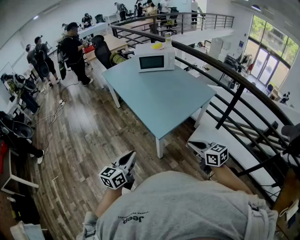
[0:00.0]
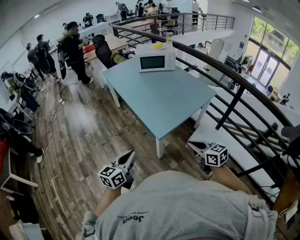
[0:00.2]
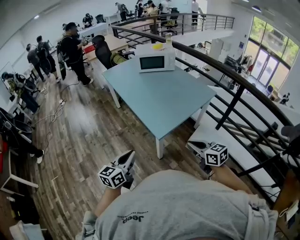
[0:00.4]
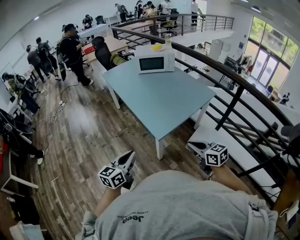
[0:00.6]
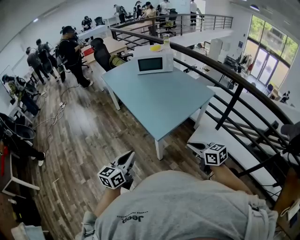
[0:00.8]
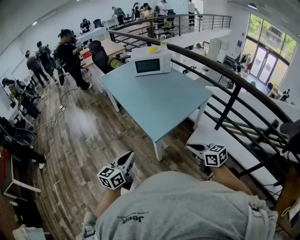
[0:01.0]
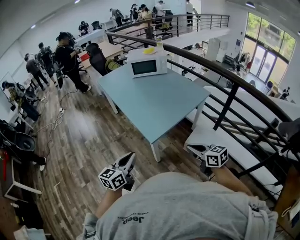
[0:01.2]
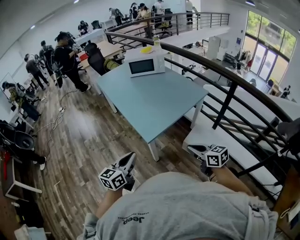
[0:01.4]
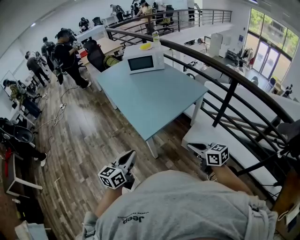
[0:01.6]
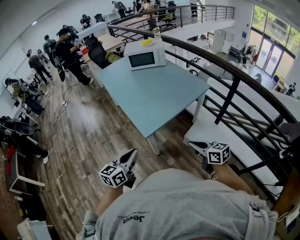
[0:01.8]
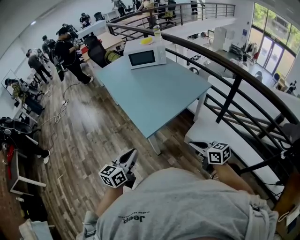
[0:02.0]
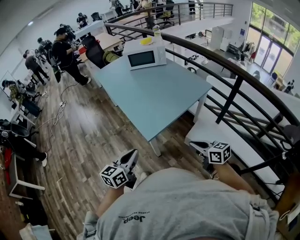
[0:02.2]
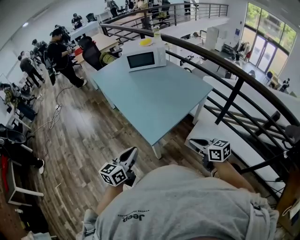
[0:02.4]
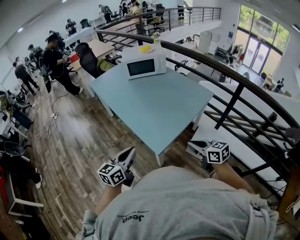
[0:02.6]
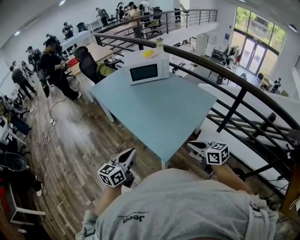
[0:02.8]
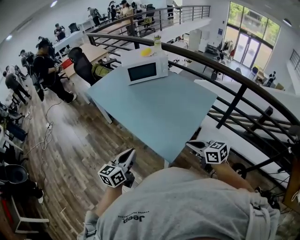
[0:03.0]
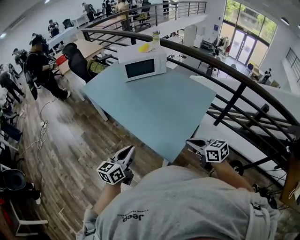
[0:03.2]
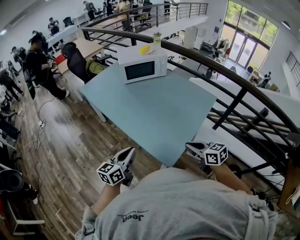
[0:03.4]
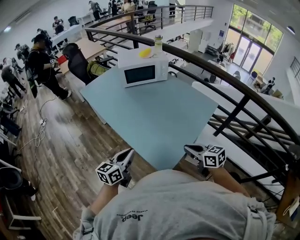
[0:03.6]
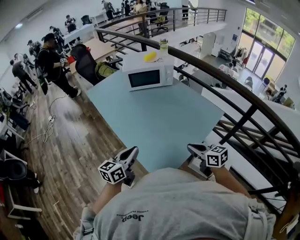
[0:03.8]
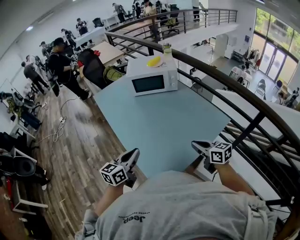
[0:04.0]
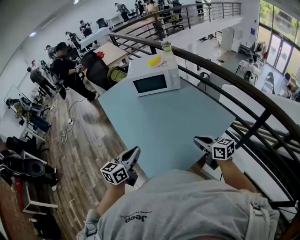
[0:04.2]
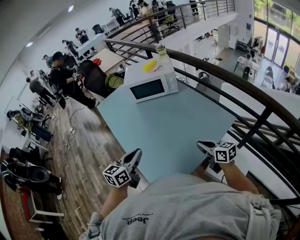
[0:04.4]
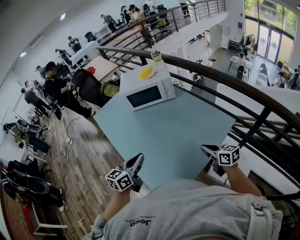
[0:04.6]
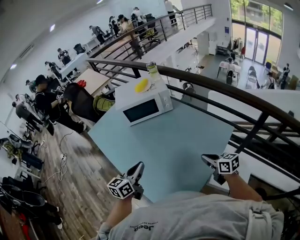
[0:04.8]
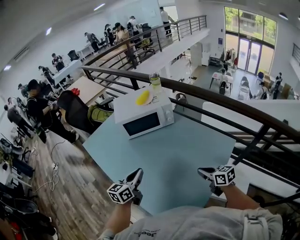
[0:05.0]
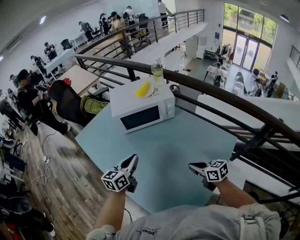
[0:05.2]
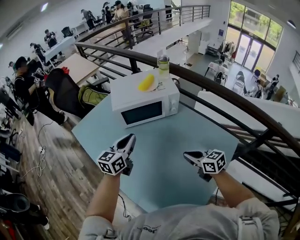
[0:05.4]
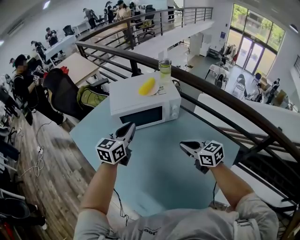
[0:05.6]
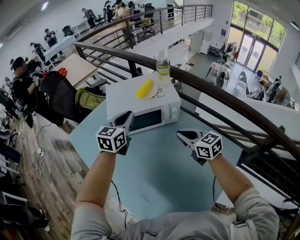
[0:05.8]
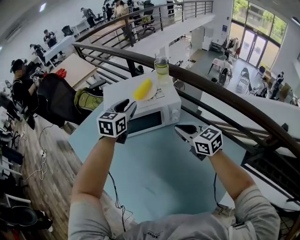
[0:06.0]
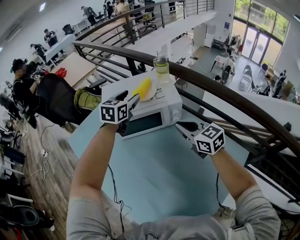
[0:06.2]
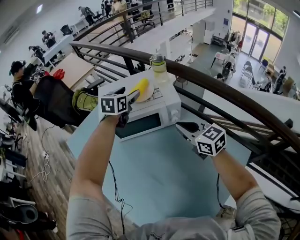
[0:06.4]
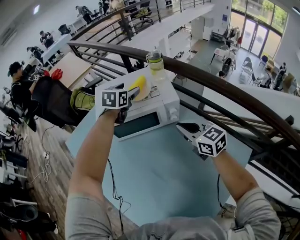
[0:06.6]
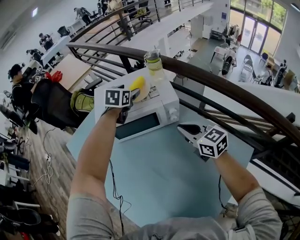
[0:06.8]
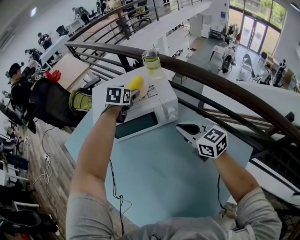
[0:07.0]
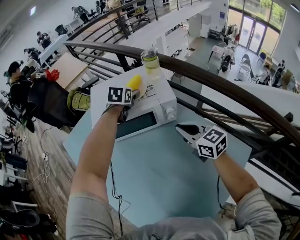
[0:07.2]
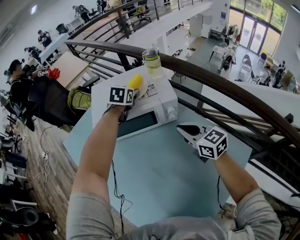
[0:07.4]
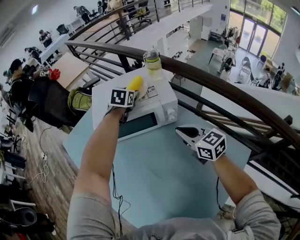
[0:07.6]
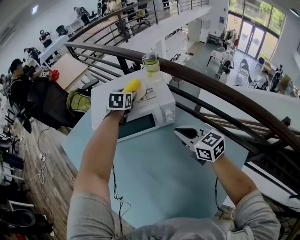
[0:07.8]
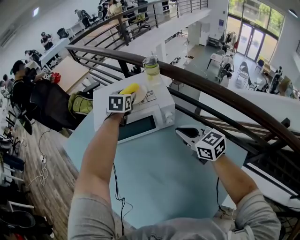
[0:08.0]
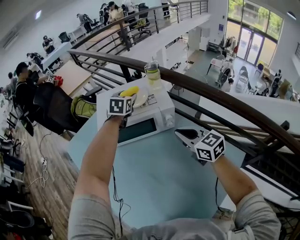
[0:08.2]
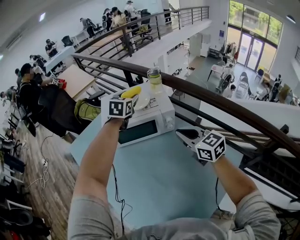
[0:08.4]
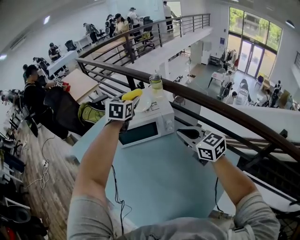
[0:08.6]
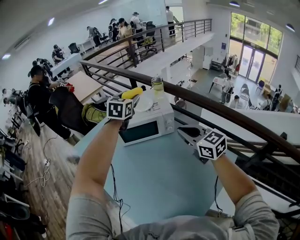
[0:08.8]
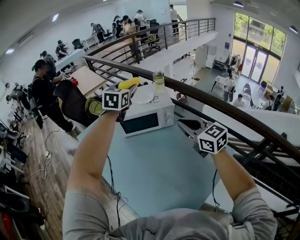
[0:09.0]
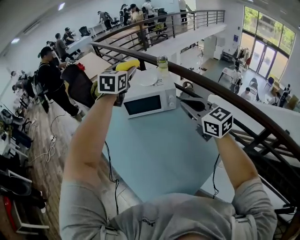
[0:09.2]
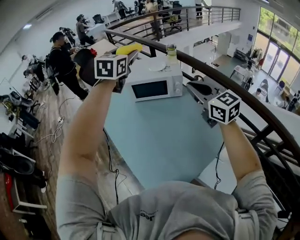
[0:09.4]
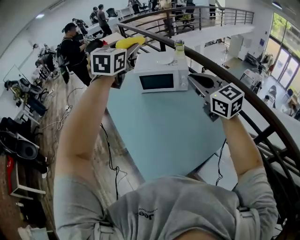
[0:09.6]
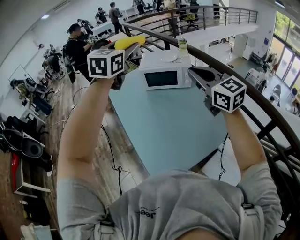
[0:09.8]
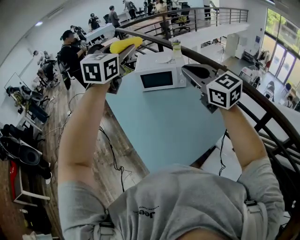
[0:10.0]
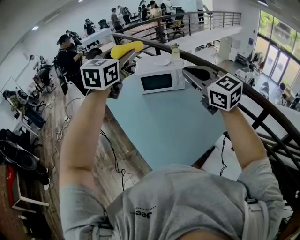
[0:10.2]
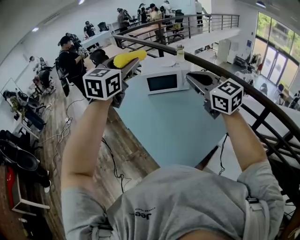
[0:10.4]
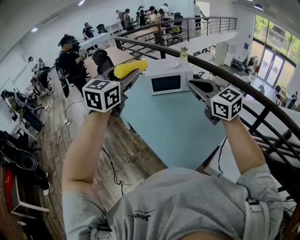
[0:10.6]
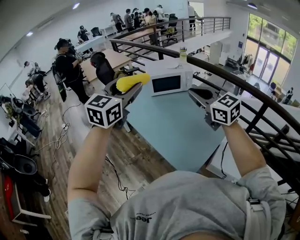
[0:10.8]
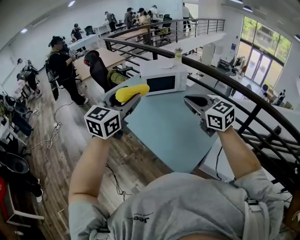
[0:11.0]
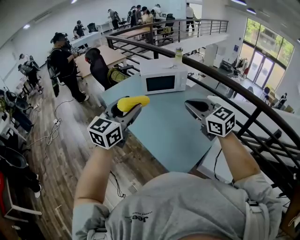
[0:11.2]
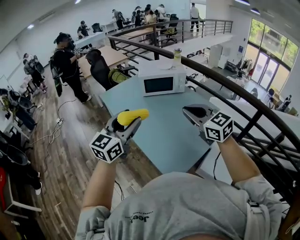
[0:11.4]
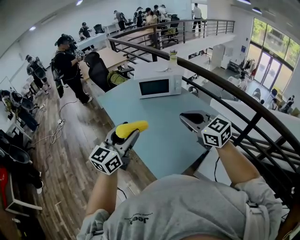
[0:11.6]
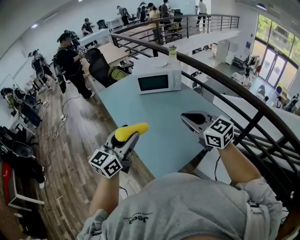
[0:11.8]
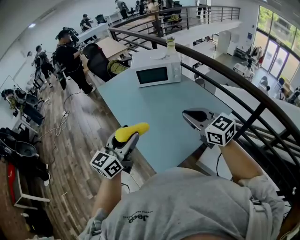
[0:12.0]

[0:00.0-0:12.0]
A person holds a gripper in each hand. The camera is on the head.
0:00.0 to 0:01.6: The grippers both shift to the right by approximately 10 cm.
0:01.6 to 0:03.0: Both grippers travel together forward and to the left, roughly 30 cm.
0:03.0 to 0:04.4: Both grippers move forward and to the right, approximately 30 cm.
0:04.4 to 0:06.0: The pair of grippers is taken forward, roughly 50 cm. The right gripper changes its angle by roughly 20 degrees. The left gripper turns by roughly 20 degrees.
0:06.0 to 0:07.6: The right gripper changes place by some 5 cm. Meanwhile the left gripper heads forward, downward and to the right, covering some 20 cm, swivels roughly 20 degrees, and opens up.
0:07.6 to 0:09.0: The two grippers go about 30 cm upward and backward. The left gripper swivels roughly 20 degrees.
0:09.0 to 0:10.4: The left gripper goes roughly 40 cm backward and to the left, while the right gripper travels backward, upward and to the left by some 30 cm.
0:10.4 to 0:12.0: The right gripper heads downward and backward, covering roughly 15 cm, while the left gripper shifts roughly 30 cm downward and backward, and changes its angle by approximately 20 degrees.

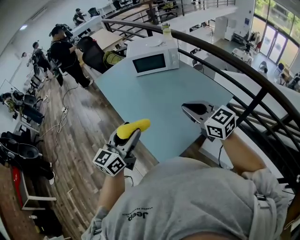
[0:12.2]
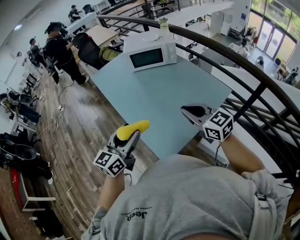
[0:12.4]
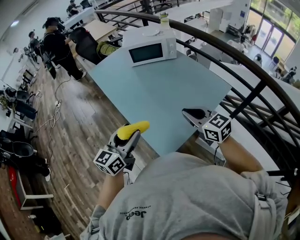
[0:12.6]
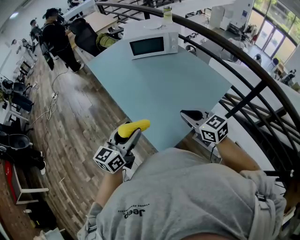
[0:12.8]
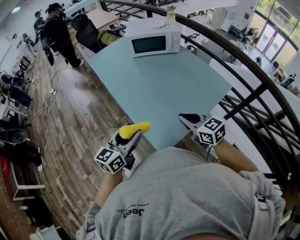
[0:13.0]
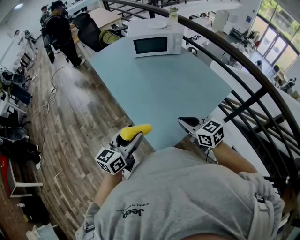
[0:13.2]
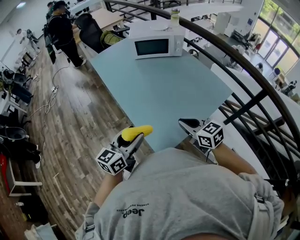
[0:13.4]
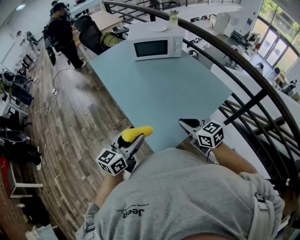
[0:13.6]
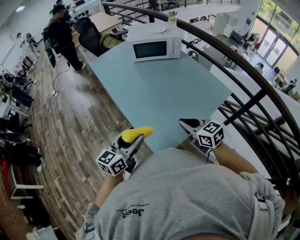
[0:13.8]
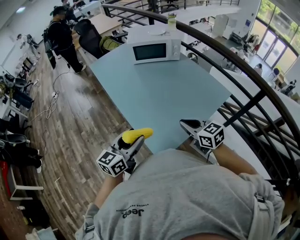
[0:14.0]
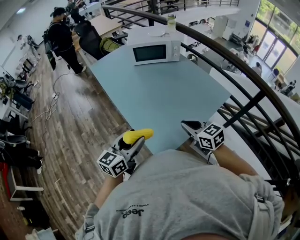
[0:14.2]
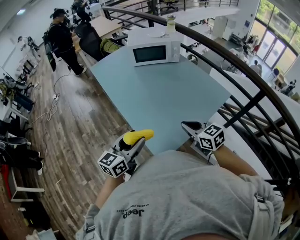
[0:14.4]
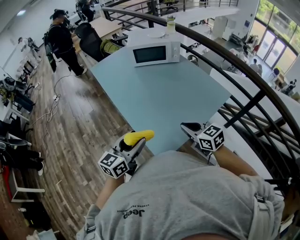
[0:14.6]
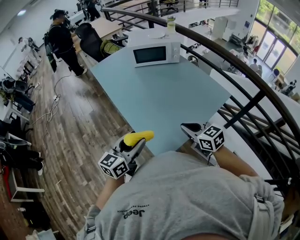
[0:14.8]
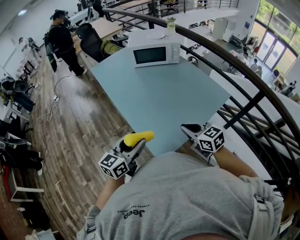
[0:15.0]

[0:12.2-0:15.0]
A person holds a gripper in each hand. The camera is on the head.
0:12.2 to 0:13.6: The two grippers go some 10 cm downward.
0:13.6 to 0:15.0: The grippers move only a little.

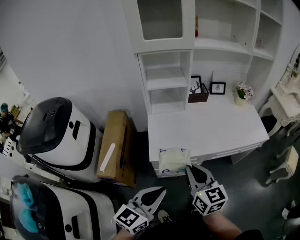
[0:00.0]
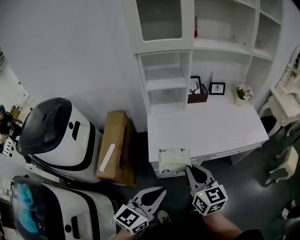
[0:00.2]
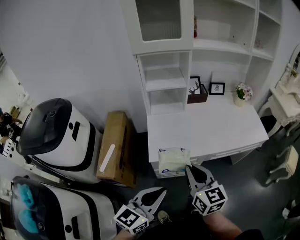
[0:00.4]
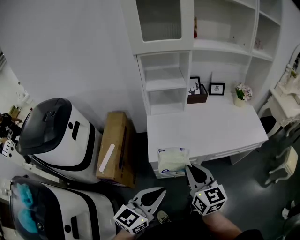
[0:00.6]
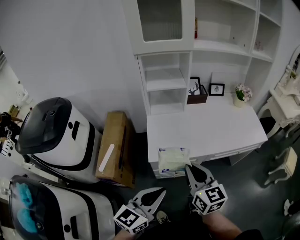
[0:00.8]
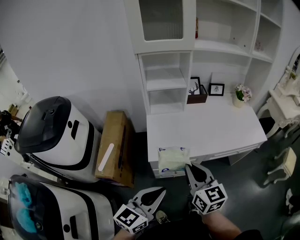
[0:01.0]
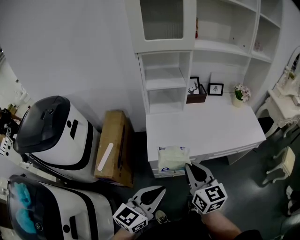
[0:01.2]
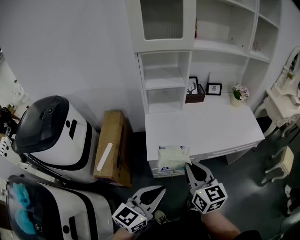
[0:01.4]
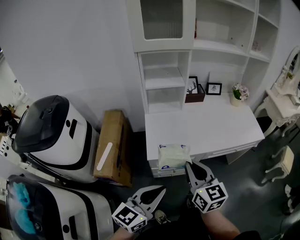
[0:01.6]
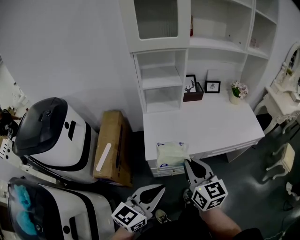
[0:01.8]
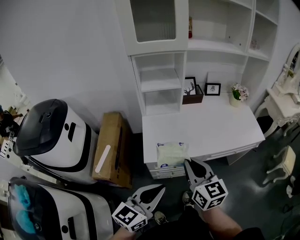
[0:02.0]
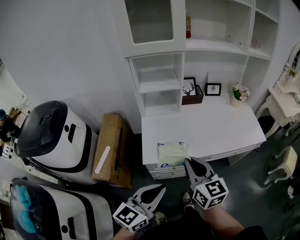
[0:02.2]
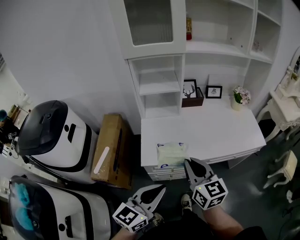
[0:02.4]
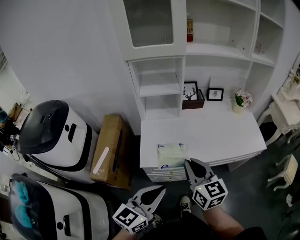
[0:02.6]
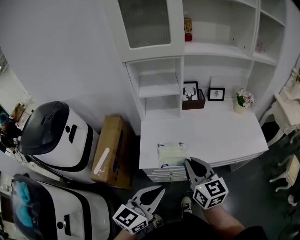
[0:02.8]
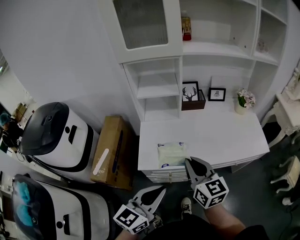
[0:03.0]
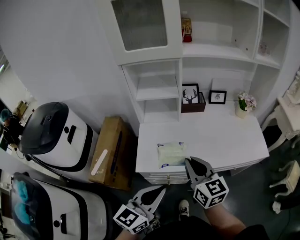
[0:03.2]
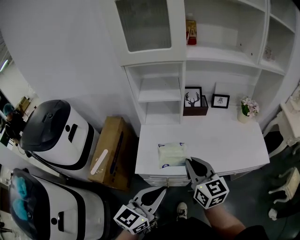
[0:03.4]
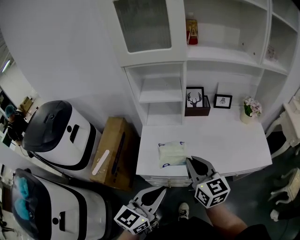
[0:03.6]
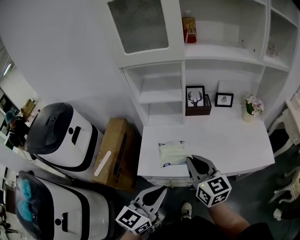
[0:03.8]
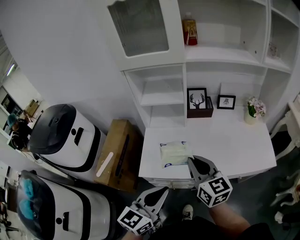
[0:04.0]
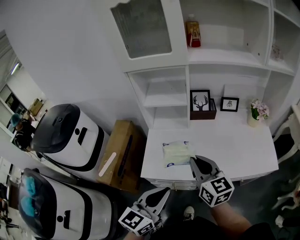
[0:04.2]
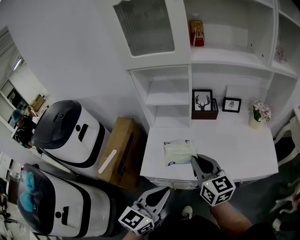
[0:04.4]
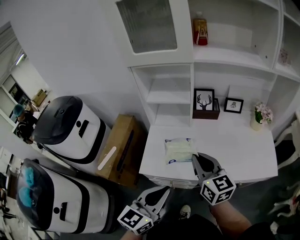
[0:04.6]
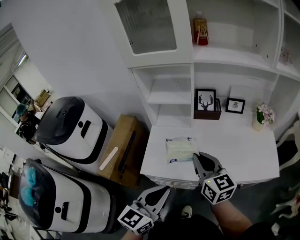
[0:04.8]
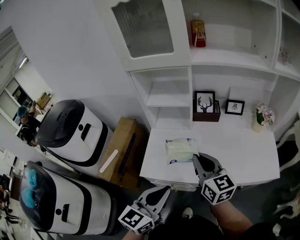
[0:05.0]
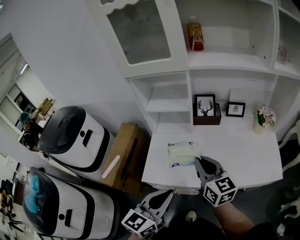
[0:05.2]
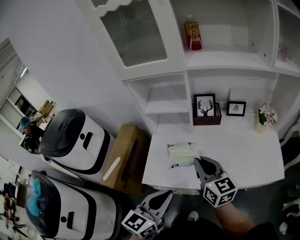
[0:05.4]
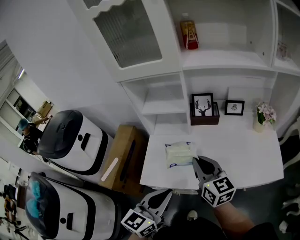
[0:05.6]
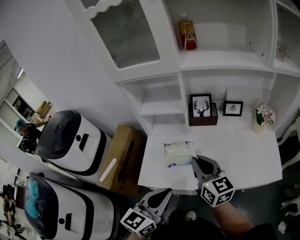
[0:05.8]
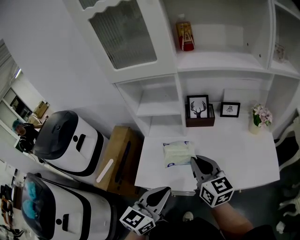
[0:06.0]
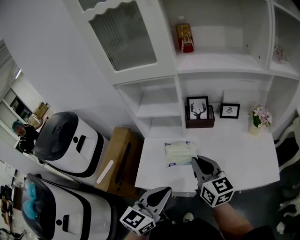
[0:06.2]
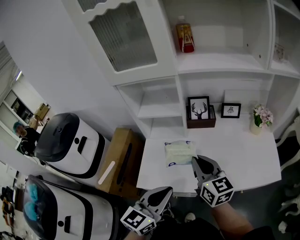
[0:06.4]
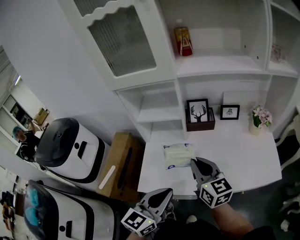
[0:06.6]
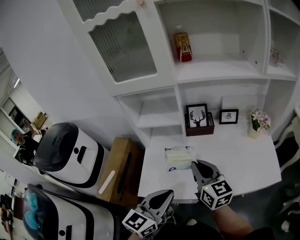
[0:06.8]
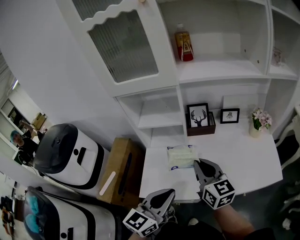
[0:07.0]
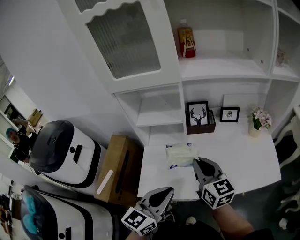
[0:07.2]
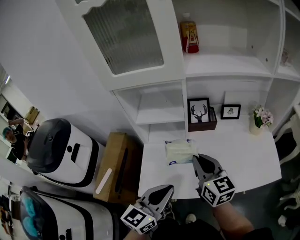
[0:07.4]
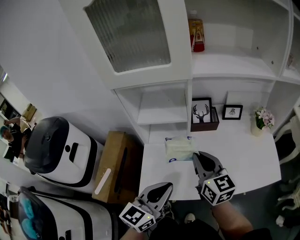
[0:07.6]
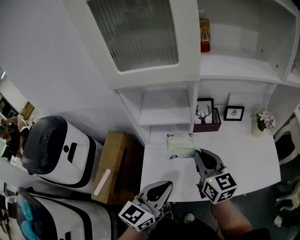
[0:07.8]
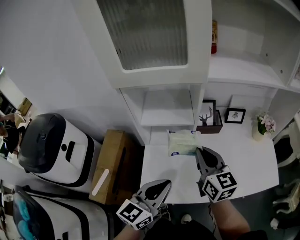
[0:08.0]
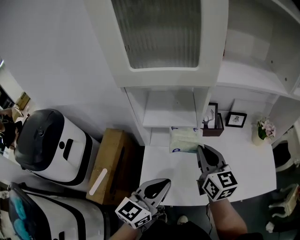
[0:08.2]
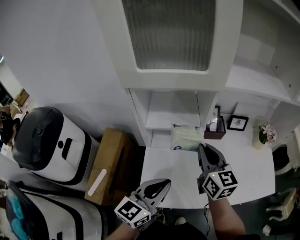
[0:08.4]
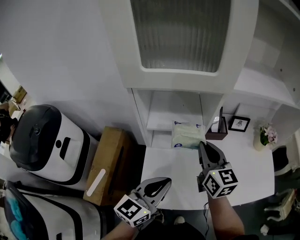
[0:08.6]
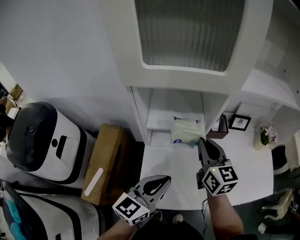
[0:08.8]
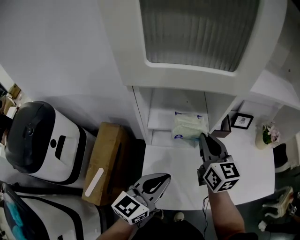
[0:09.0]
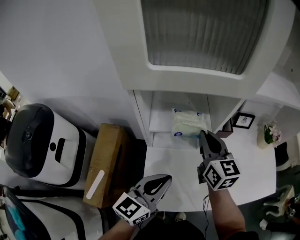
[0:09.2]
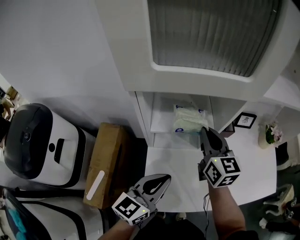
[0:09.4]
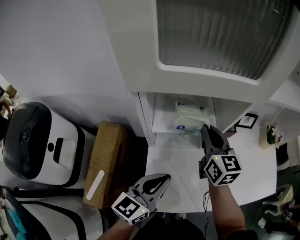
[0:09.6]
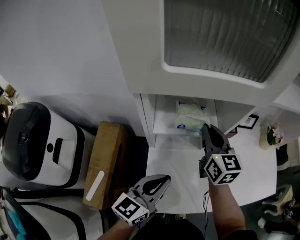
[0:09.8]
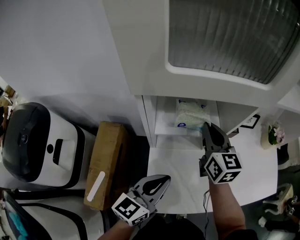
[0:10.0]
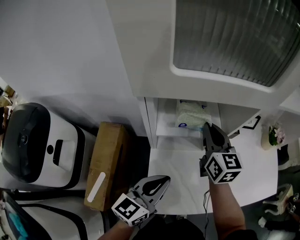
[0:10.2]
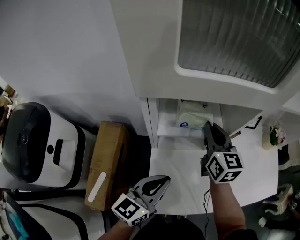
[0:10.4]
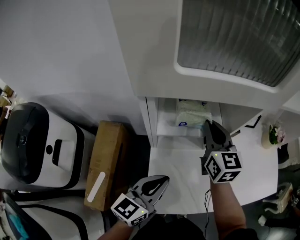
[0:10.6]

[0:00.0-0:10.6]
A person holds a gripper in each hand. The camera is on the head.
0:00.0 to 0:01.6: Both grippers stay about where they are.
0:01.6 to 0:03.0: The grippers both shift forward and to the right by some 15 cm.
0:03.0 to 0:04.6: Both grippers move forward, some 5 cm.
0:04.6 to 0:06.0: Both grippers move forward, some 5 cm.
0:06.0 to 0:07.6: The left gripper moves forward and to the left, about 10 cm. The right gripper travels forward by approximately 5 cm.
0:07.6 to 0:09.0: The left gripper travels to the left and forward by approximately 15 cm; the right gripper shifts roughly 15 cm forward and to the left.
0:09.0 to 0:10.6: The left gripper goes roughly 5 cm to the left, while the right gripper is displaced forward by roughly 5 cm.
